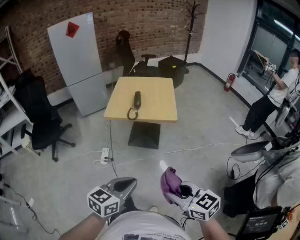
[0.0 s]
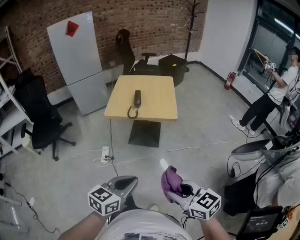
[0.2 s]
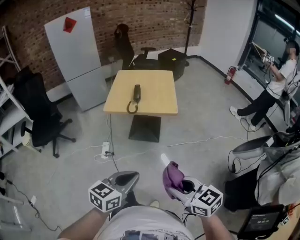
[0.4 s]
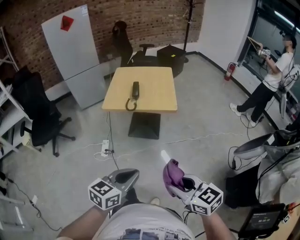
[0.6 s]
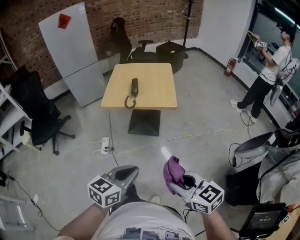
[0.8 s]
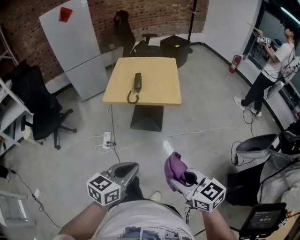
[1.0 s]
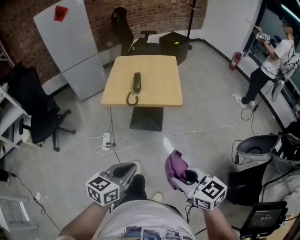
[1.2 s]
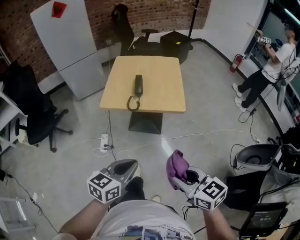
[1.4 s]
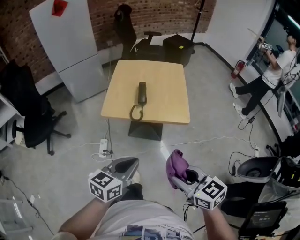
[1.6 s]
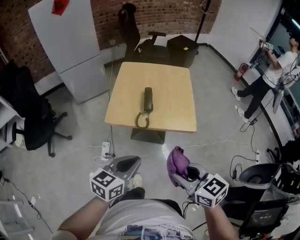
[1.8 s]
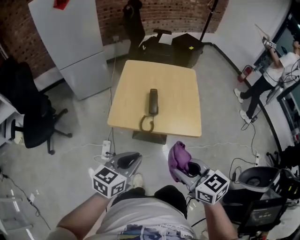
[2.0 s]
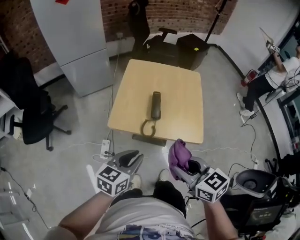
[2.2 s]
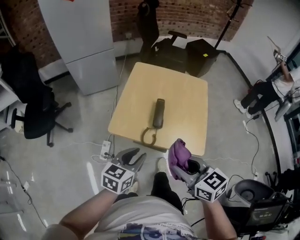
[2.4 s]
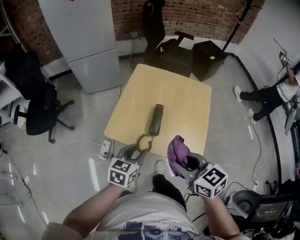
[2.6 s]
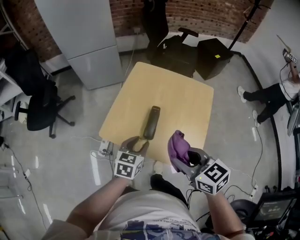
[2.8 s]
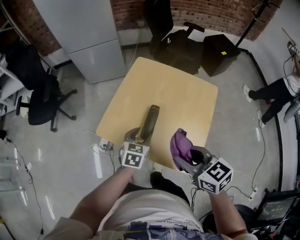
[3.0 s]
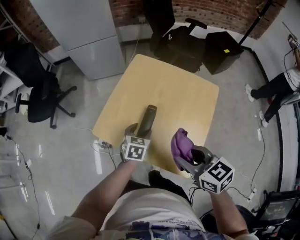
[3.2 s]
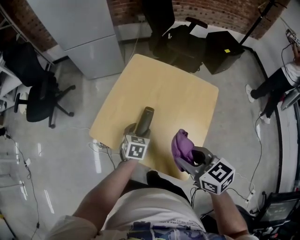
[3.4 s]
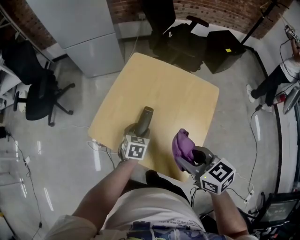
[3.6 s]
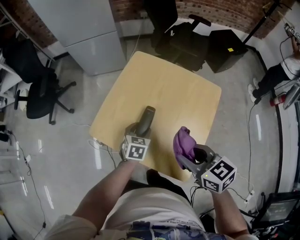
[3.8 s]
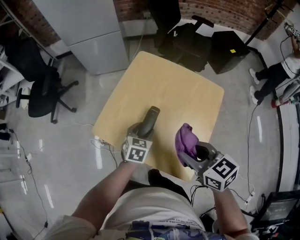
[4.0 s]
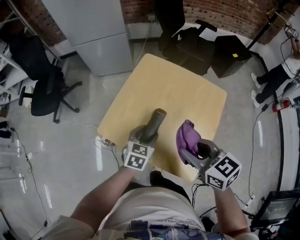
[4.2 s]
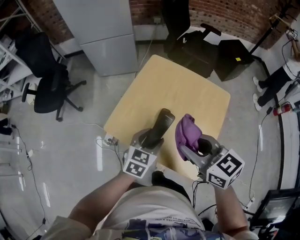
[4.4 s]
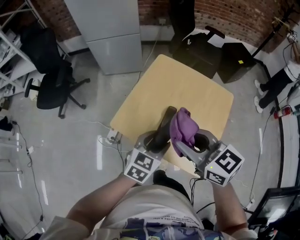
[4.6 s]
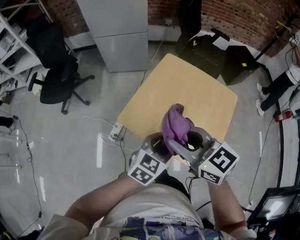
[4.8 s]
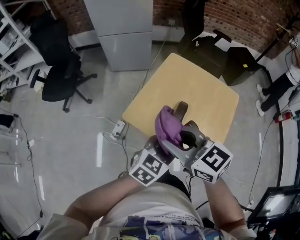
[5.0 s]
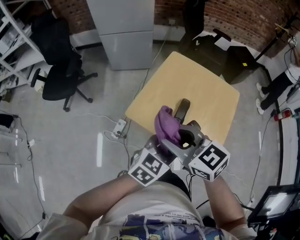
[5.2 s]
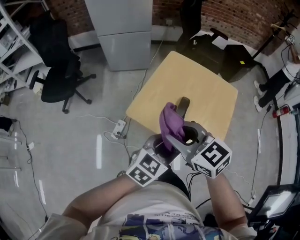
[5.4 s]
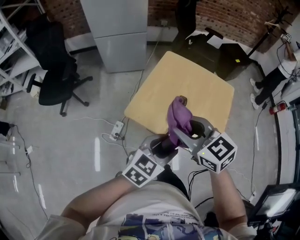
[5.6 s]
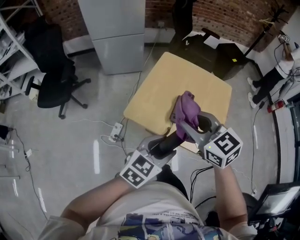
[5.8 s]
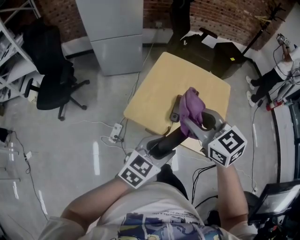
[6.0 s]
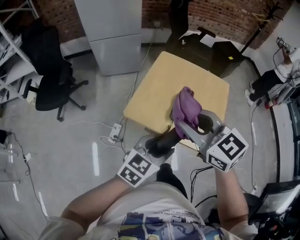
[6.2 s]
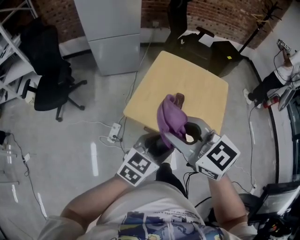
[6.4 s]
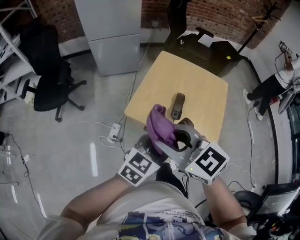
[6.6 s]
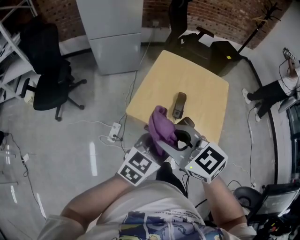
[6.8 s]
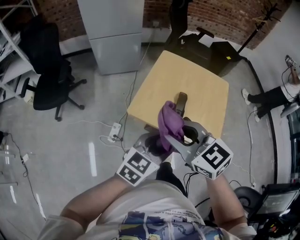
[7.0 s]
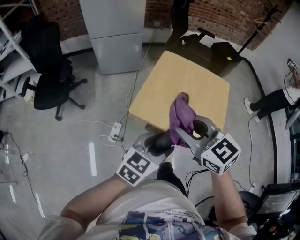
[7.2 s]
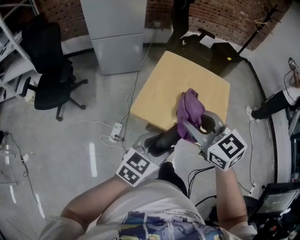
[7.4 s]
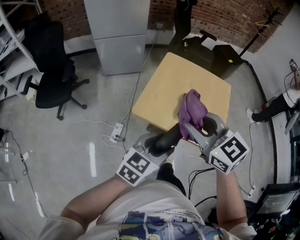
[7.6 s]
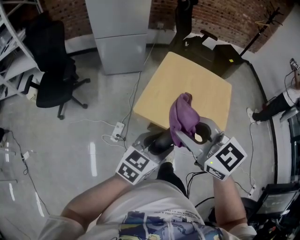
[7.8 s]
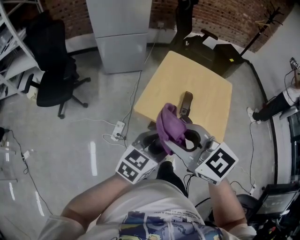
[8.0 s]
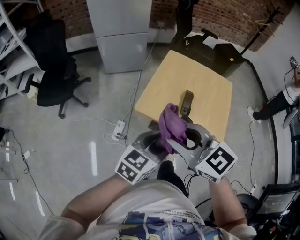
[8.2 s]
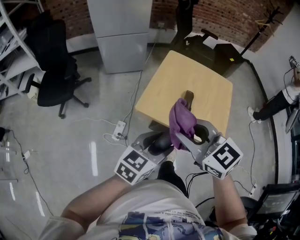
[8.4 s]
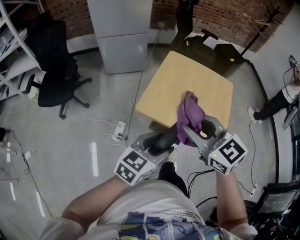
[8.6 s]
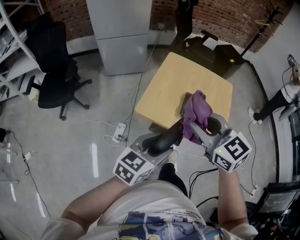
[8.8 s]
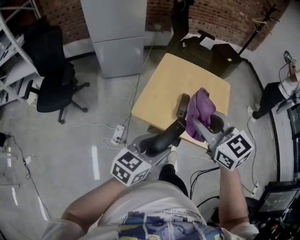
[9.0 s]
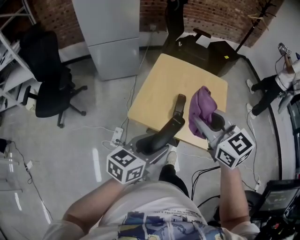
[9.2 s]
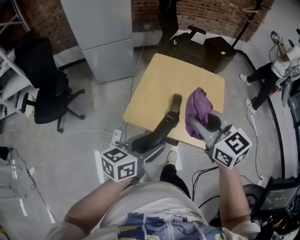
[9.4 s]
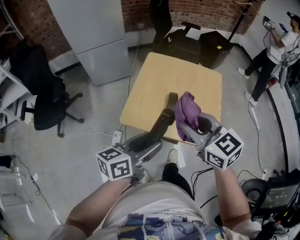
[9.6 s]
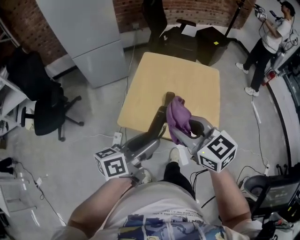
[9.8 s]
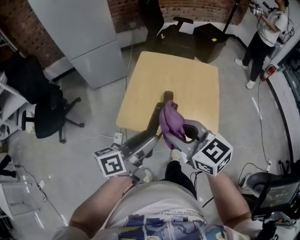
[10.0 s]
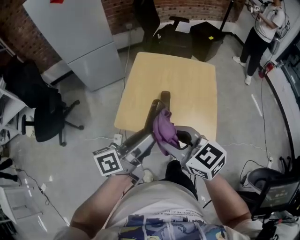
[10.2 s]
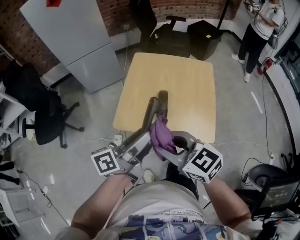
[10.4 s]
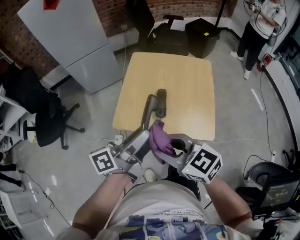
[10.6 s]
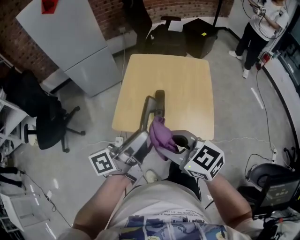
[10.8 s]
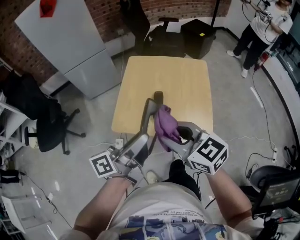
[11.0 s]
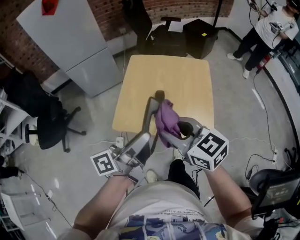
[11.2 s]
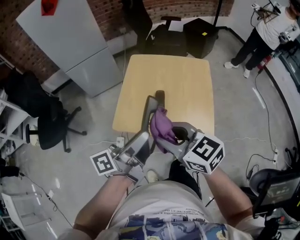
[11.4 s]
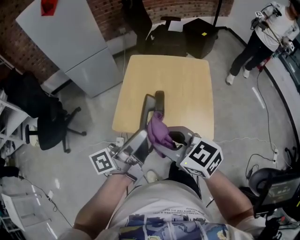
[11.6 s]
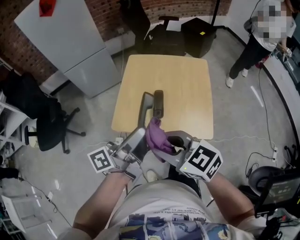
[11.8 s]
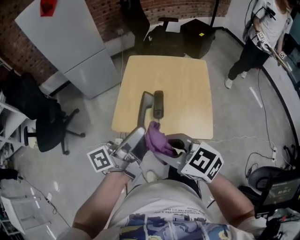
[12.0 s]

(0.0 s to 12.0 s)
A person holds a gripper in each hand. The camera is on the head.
0.0 s - 1.6 s: The grippers both shift forward by approximately 20 cm.
1.6 s - 3.0 s: The left gripper shifts by approximately 35 cm, turns by approximately 40 degrees, and opens, while the right gripper ends up roughly 35 cm from where it was, and turns by approximately 20 degrees.
3.0 s - 4.4 s: The left gripper goes approximately 5 cm upward. The right gripper goes roughly 5 cm forward.
4.4 s - 6.0 s: The right gripper moves to the left, approximately 10 cm. Meanwhile the left gripper is displaced backward, upward and to the left by roughly 15 cm, and changes its angle by some 20 degrees.
6.0 s - 7.6 s: The grippers both shift to the left by approximately 5 cm.
7.6 s - 9.0 s: The right gripper reaches about 5 cm to the left, then returns.
9.0 s - 10.4 s: The right gripper shifts some 10 cm downward and backward. Meanwhile the left gripper shifts about 5 cm forward, and rotates around the line of its fingers by about 40 degrees, counterclockwise from behind.
10.4 s - 12.0 s: The grippers stay close to where they were, moving slightly.

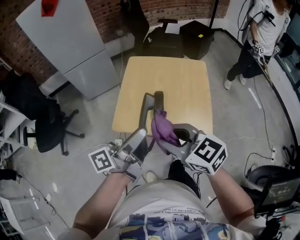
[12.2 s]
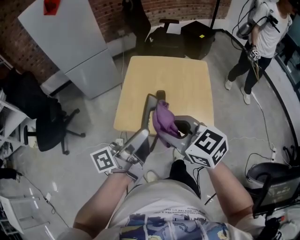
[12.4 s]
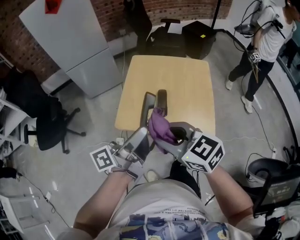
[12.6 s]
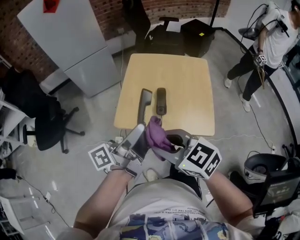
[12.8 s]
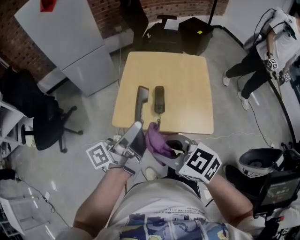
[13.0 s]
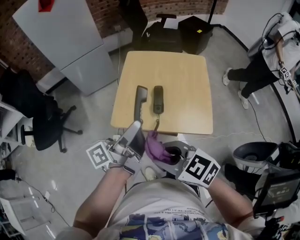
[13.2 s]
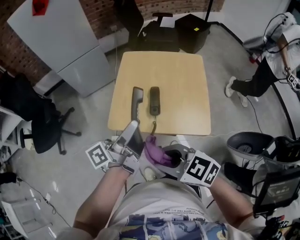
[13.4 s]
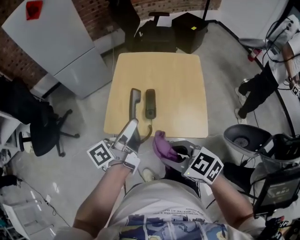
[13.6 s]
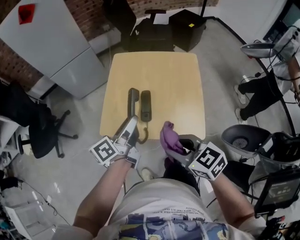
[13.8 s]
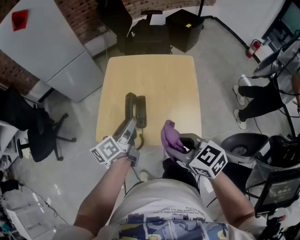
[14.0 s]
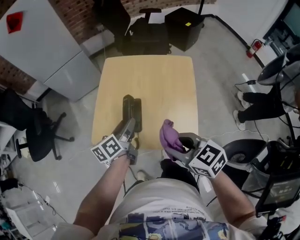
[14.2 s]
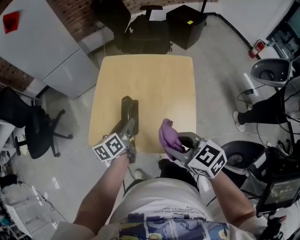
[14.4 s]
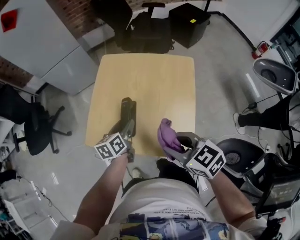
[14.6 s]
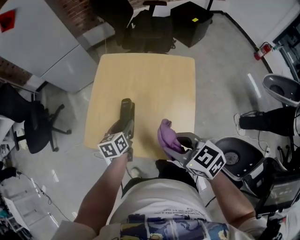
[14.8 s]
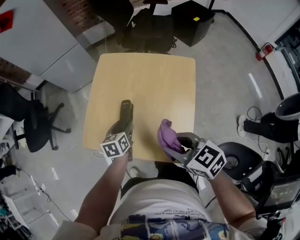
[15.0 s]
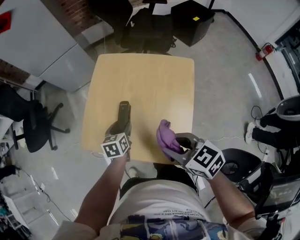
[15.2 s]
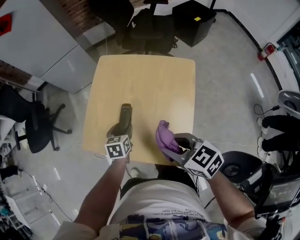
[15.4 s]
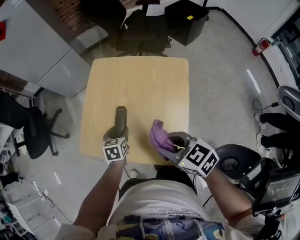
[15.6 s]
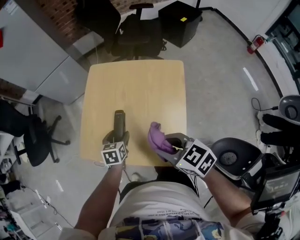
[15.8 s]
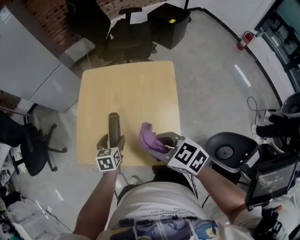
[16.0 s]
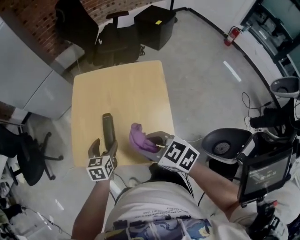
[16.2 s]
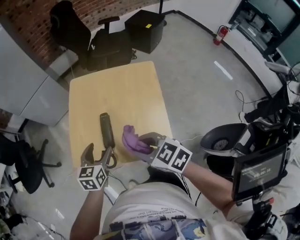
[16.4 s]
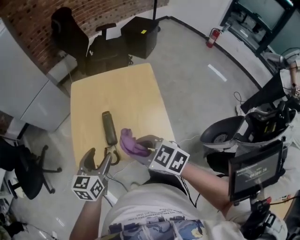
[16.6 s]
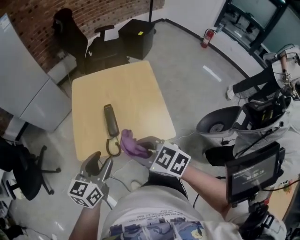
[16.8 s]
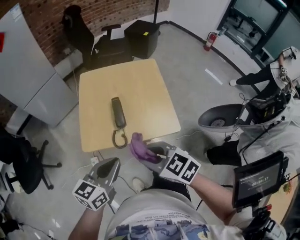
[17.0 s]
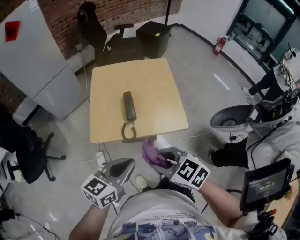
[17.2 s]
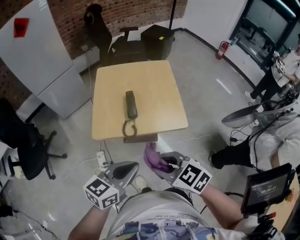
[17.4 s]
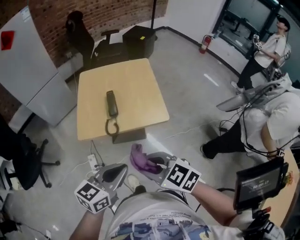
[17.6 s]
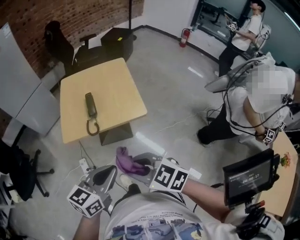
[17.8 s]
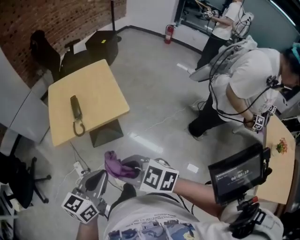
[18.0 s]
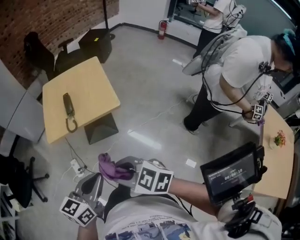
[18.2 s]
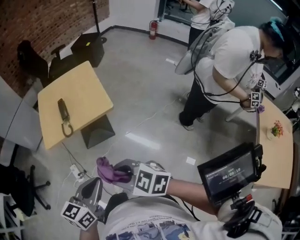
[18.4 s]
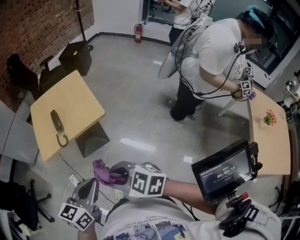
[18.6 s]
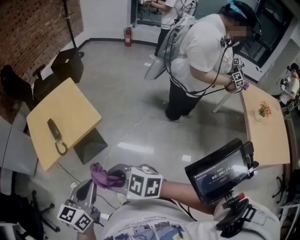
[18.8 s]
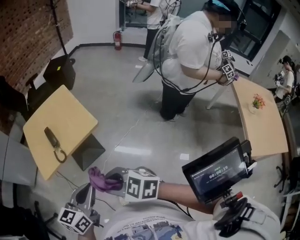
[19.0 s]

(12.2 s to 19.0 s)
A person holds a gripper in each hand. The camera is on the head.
12.2 s - 13.6 s: The left gripper is displaced forward and downward by approximately 10 cm; the right gripper goes approximately 10 cm downward.
13.6 s - 15.0 s: The left gripper shifts some 20 cm downward and forward, and tips its fingers downward by roughly 50 degrees, while the right gripper moves to the right and forward, some 20 cm.
15.0 s - 16.2 s: The left gripper changes its angle by roughly 20 degrees.
16.2 s - 17.6 s: The left gripper ends up approximately 35 cm from where it was, turns by about 50 degrees, and closes its fingers; the right gripper changes place by about 30 cm.
17.6 s - 19.0 s: The two grippers go roughly 10 cm backward.

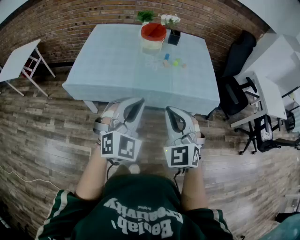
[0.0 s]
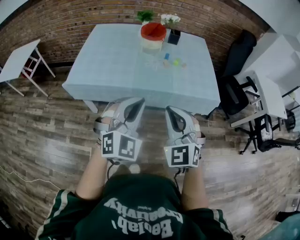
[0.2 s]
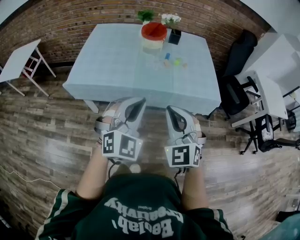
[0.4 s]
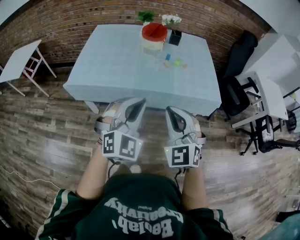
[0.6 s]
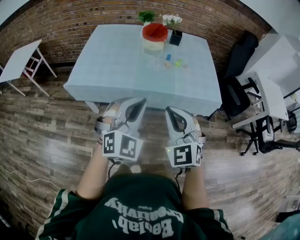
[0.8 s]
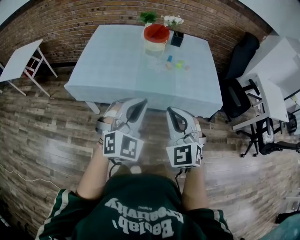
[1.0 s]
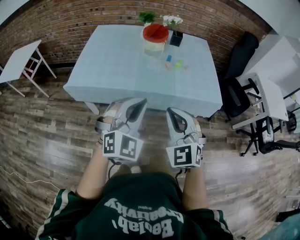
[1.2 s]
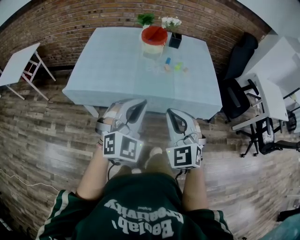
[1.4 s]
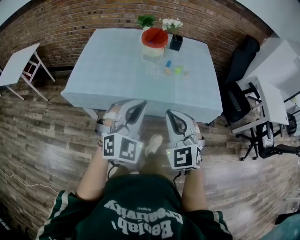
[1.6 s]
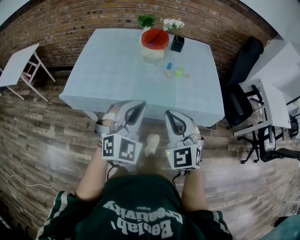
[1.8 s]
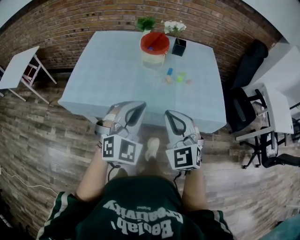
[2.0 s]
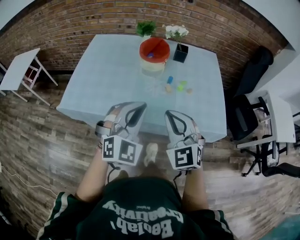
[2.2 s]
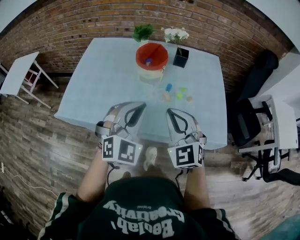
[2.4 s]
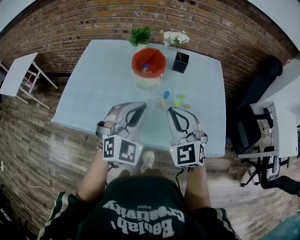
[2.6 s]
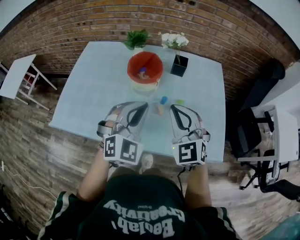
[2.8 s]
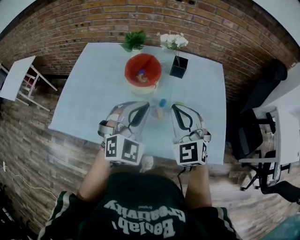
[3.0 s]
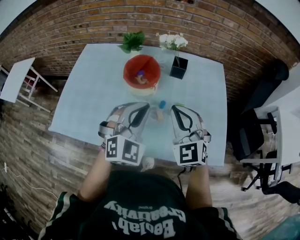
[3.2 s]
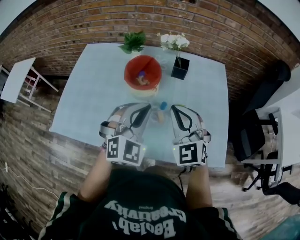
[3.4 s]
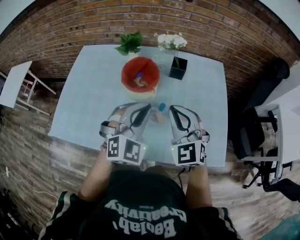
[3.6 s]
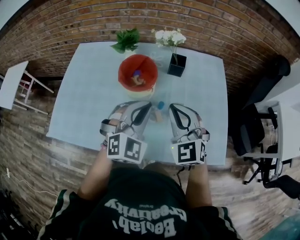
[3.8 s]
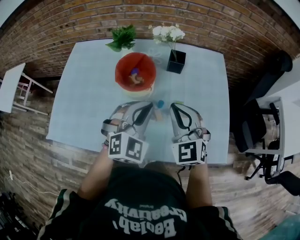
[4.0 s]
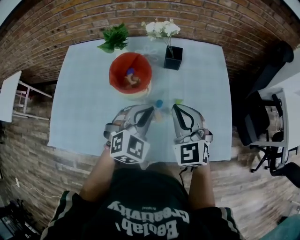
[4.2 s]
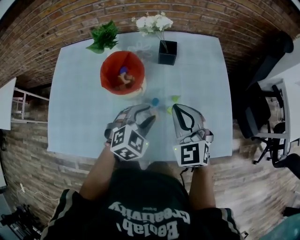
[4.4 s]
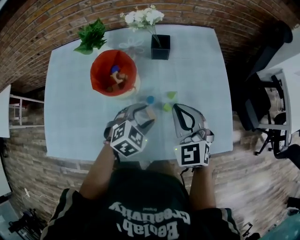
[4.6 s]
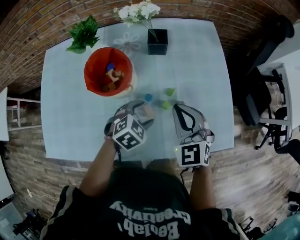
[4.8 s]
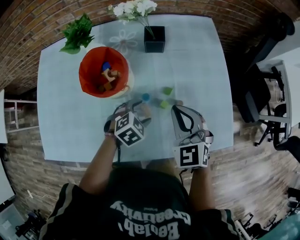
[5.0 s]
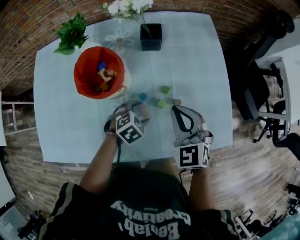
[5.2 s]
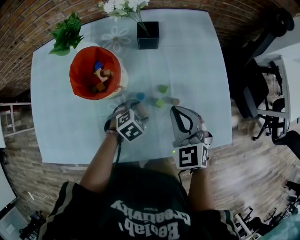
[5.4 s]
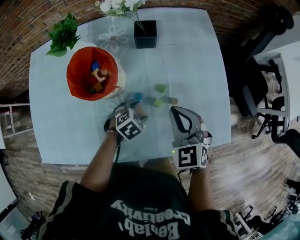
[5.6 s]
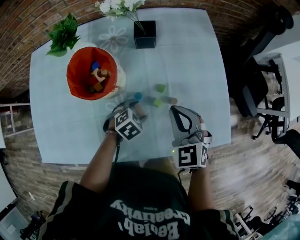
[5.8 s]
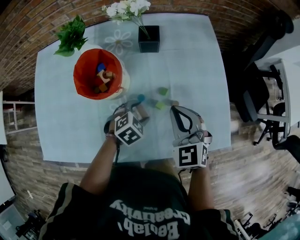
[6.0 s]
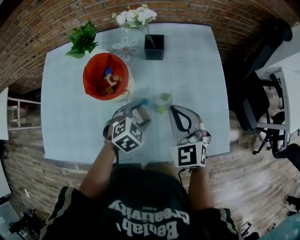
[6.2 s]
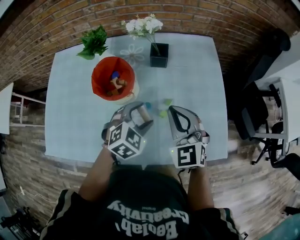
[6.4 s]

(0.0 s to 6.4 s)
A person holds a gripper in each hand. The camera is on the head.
0.0 s - 1.6 s: The grippers both shift forward by approximately 5 cm.
1.6 s - 3.2 s: Both grippers are carried forward, some 40 cm.
3.2 s - 4.8 s: The right gripper is displaced downward, forward and to the right by about 15 cm, and rotates roughly 20 degrees; the left gripper heads downward, covering about 25 cm, points its fingers roughly 40 degrees further downward, and opens its fingers.
4.8 s - 6.4 s: The left gripper shifts roughly 10 cm upward.
